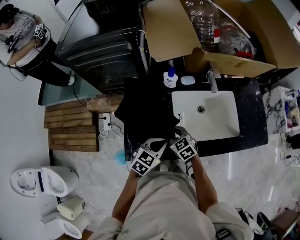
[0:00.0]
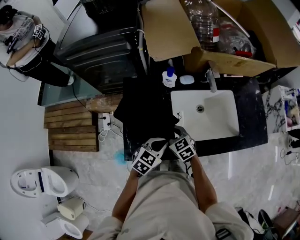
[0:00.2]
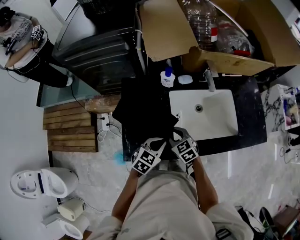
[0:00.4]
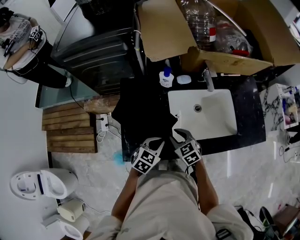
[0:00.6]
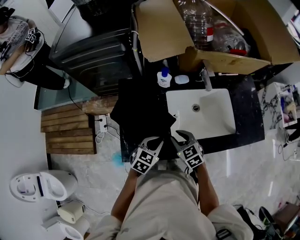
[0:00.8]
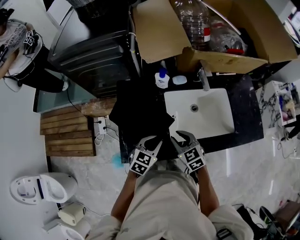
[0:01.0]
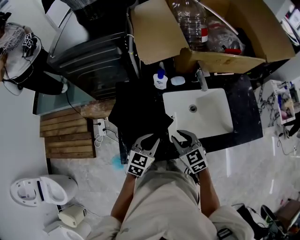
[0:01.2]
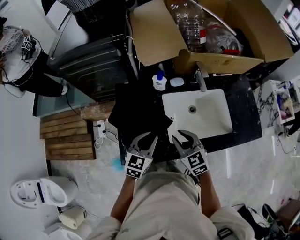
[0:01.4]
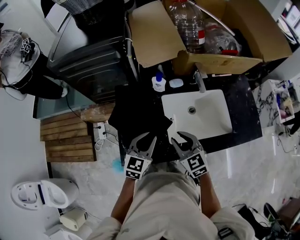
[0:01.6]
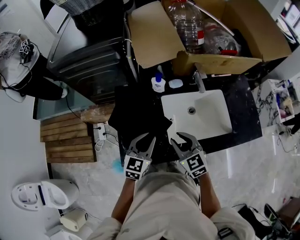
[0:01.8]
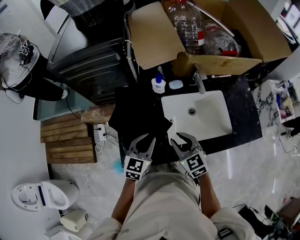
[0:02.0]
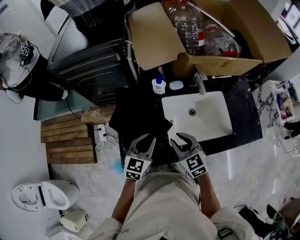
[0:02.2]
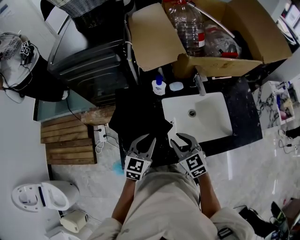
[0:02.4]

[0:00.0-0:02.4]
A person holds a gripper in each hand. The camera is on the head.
0:00.0 to 0:01.2: The right gripper heads upward and to the right, covering approximately 10 cm.
0:01.2 to 0:02.4: The grippers make only small movements.

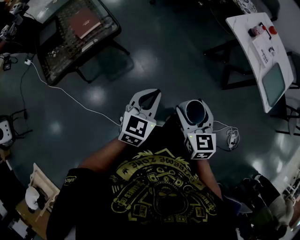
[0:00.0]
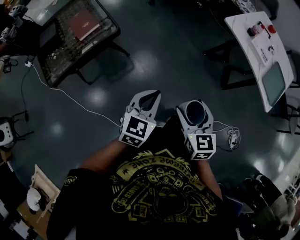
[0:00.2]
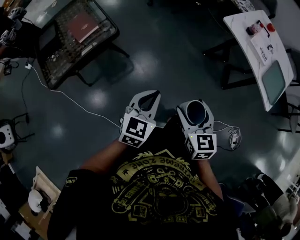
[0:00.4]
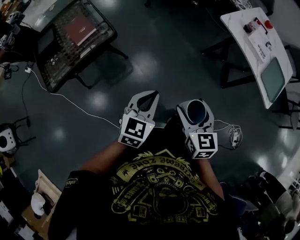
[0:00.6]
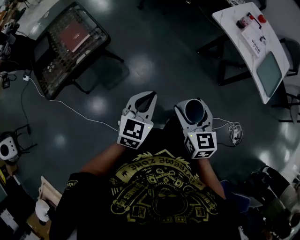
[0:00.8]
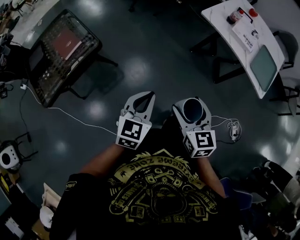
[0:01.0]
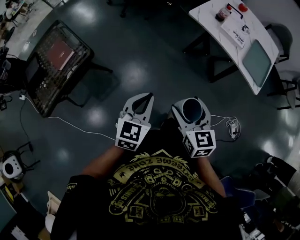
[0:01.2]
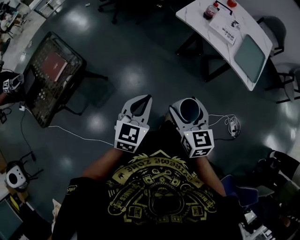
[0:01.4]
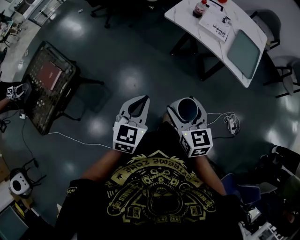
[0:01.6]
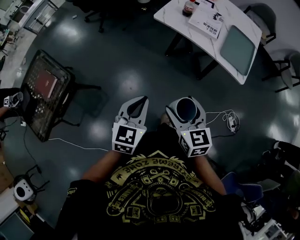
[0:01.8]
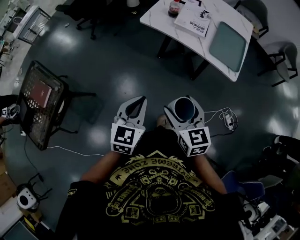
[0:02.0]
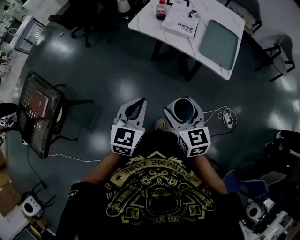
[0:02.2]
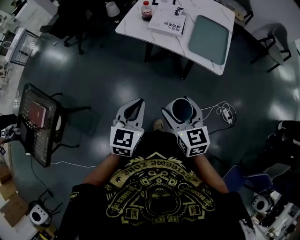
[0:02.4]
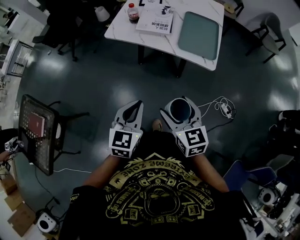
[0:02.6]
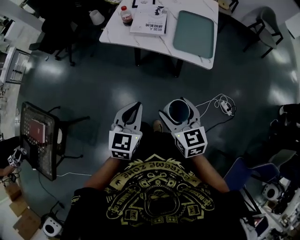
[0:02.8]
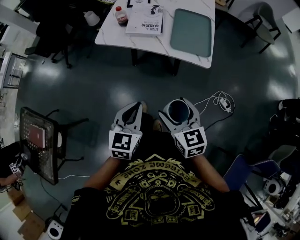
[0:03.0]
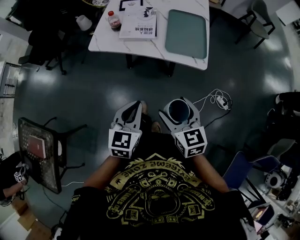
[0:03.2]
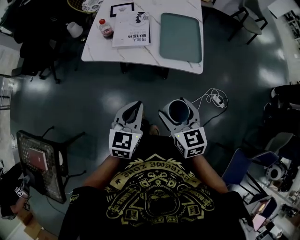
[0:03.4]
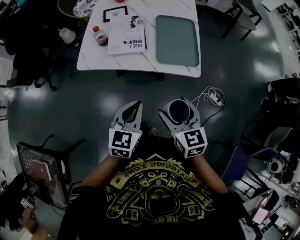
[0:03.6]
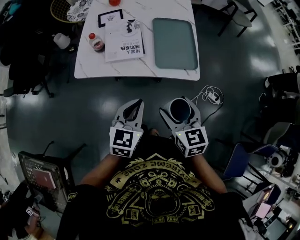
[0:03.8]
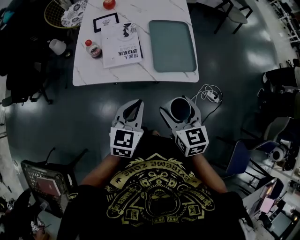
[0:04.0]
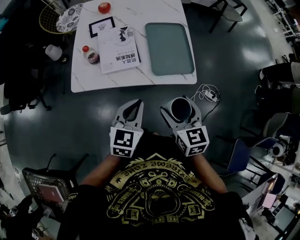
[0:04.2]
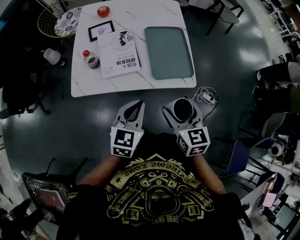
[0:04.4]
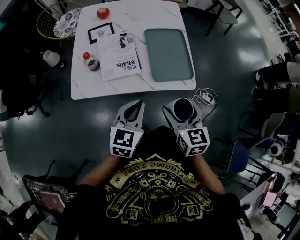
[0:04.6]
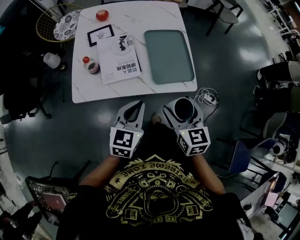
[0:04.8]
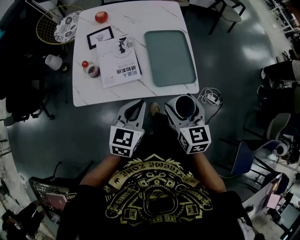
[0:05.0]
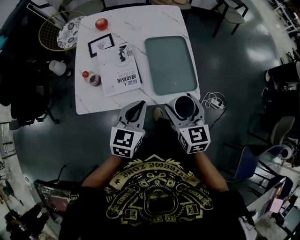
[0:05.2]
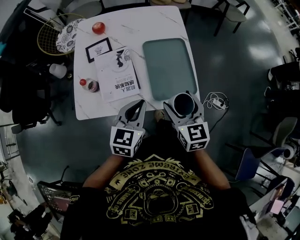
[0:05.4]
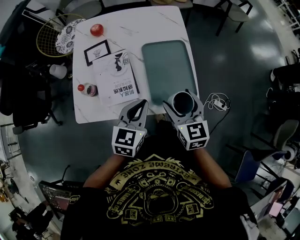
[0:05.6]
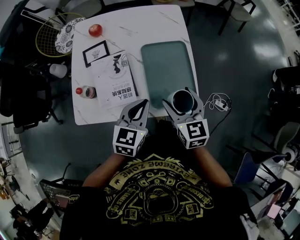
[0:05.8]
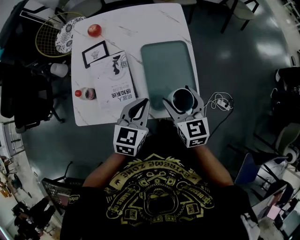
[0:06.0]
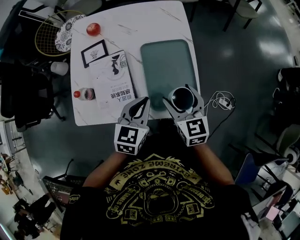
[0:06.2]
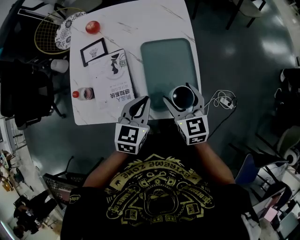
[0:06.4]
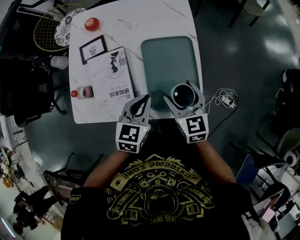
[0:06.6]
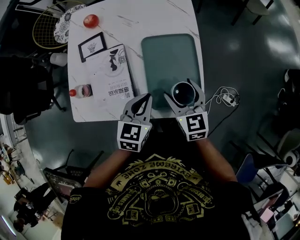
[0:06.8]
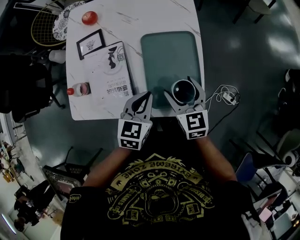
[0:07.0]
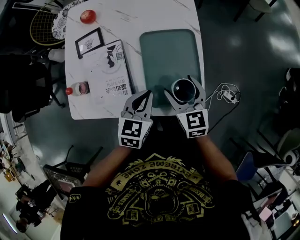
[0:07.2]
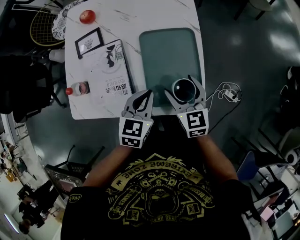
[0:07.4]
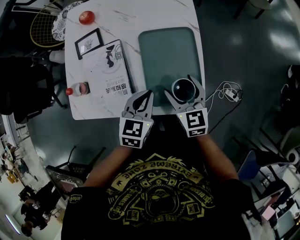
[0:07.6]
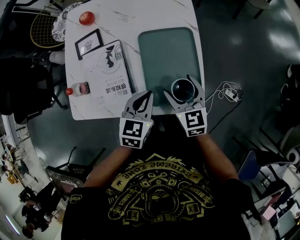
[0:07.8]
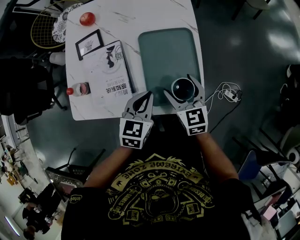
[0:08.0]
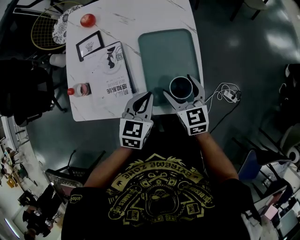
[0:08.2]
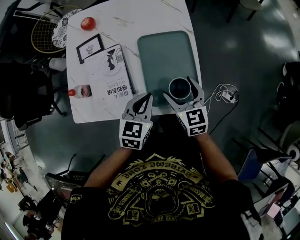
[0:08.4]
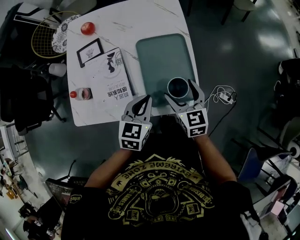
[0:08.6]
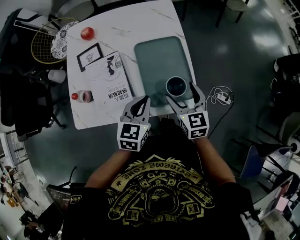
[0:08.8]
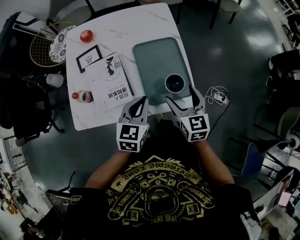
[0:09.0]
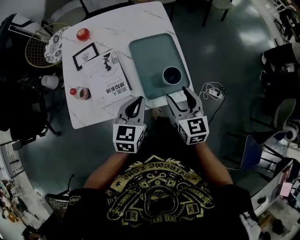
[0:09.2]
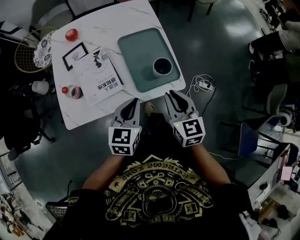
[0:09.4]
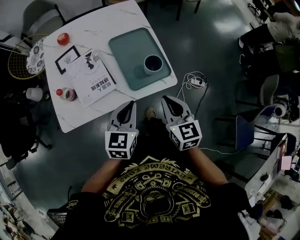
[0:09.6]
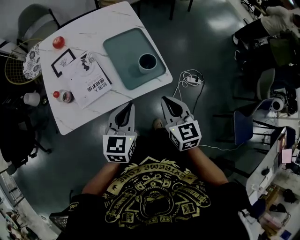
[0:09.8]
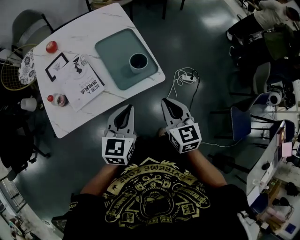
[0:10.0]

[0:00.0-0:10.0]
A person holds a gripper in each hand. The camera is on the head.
0:00.0 to 0:01.4: The right gripper goes about 10 cm to the right; the left gripper travels to the right and forward by some 15 cm.
0:01.4 to 0:02.8: The right gripper travels to the right by roughly 20 cm; the left gripper goes some 25 cm to the right and forward.
0:02.8 to 0:04.2: The left gripper changes place by roughly 25 cm, and swivels approximately 20 degrees; the right gripper moves some 20 cm, and swivels approximately 30 degrees.
0:04.2 to 0:05.8: The grippers both shift forward by about 20 cm.
0:05.8 to 0:07.2: The right gripper goes some 10 cm downward and forward. The left gripper moves downward, roughly 10 cm.
0:07.2 to 0:08.6: The grippers stay close to where they were, moving slightly.
0:08.6 to 0:10.0: Both grippers travel together backward and upward, roughly 20 cm. The right gripper swivels approximately 20 degrees, and closes its fingers, while the left gripper rotates roughly 20 degrees.

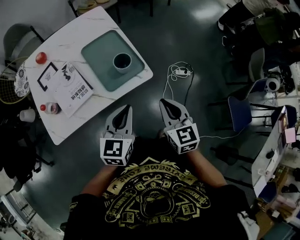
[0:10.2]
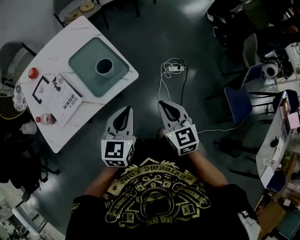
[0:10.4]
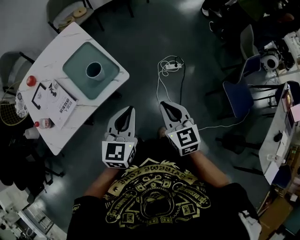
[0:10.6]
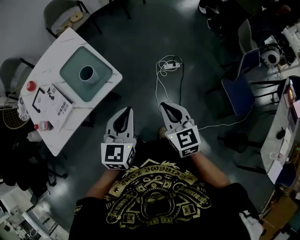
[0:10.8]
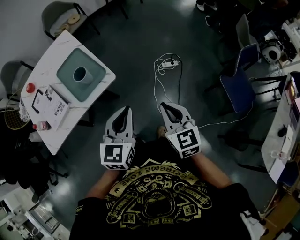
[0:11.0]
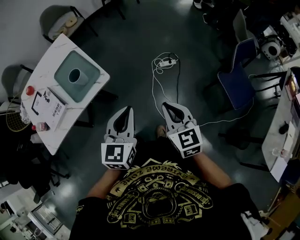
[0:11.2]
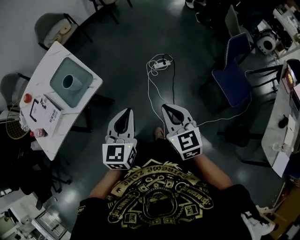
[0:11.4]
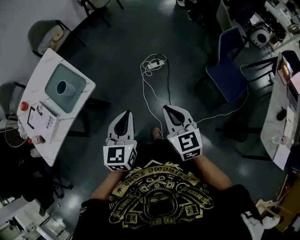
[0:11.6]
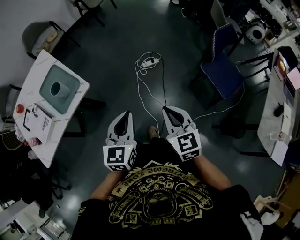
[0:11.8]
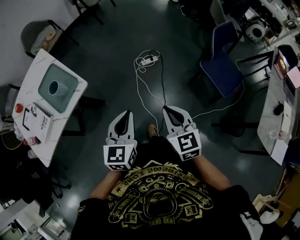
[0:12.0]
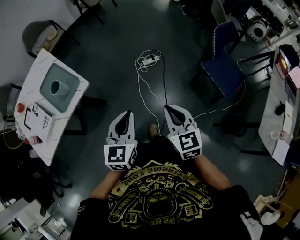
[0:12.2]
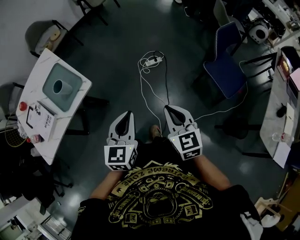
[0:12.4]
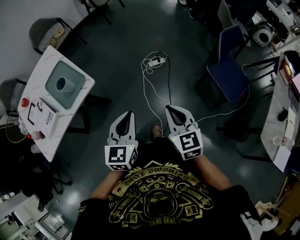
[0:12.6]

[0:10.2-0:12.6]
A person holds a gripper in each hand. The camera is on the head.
0:10.2 to 0:11.4: The two grippers go about 25 cm to the right.
0:11.4 to 0:12.6: The right gripper shifts some 5 cm to the right; the left gripper shifts by about 5 cm.

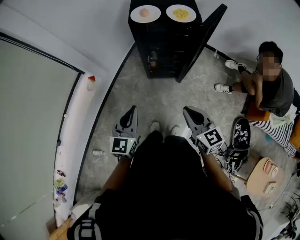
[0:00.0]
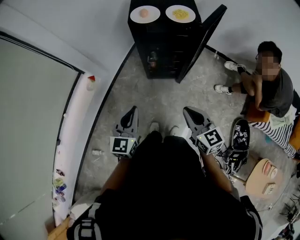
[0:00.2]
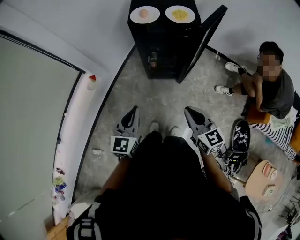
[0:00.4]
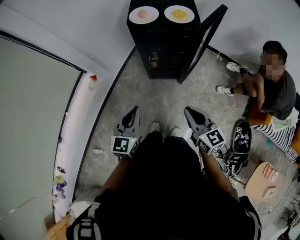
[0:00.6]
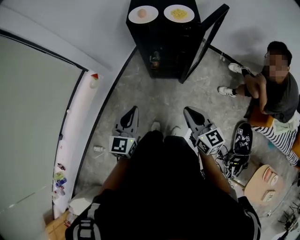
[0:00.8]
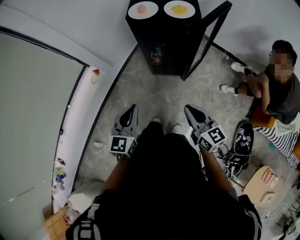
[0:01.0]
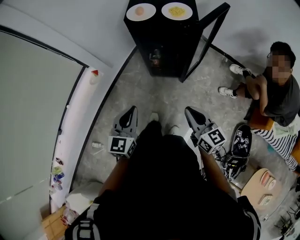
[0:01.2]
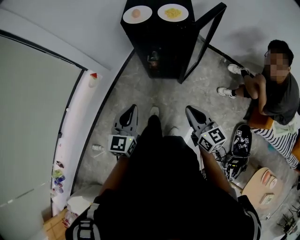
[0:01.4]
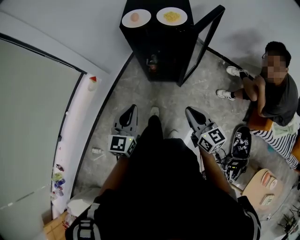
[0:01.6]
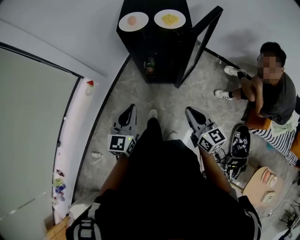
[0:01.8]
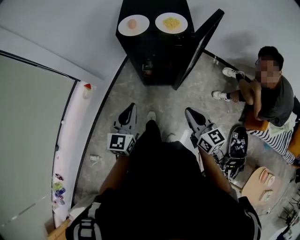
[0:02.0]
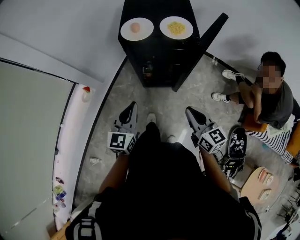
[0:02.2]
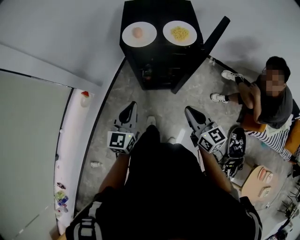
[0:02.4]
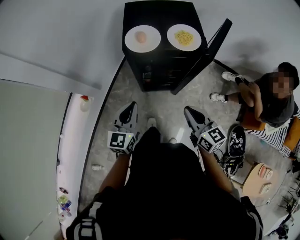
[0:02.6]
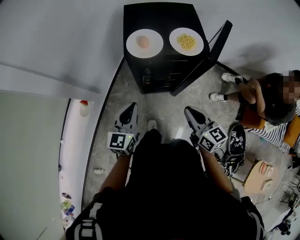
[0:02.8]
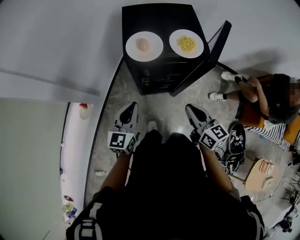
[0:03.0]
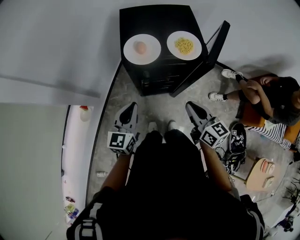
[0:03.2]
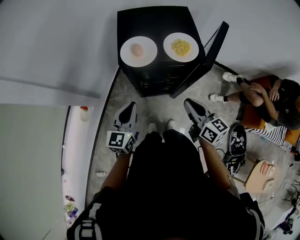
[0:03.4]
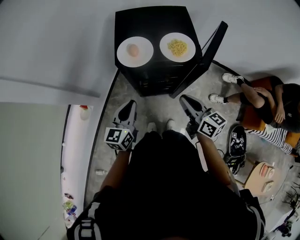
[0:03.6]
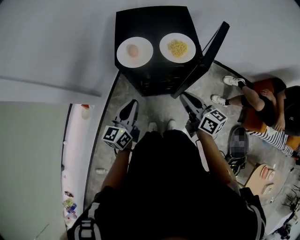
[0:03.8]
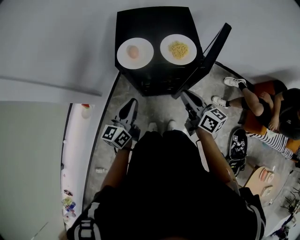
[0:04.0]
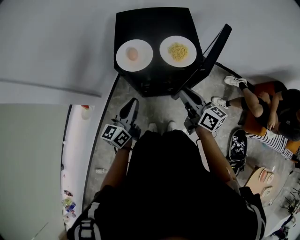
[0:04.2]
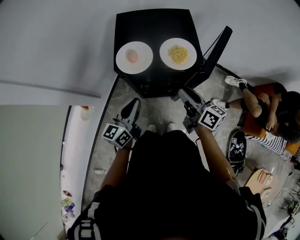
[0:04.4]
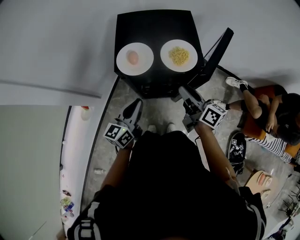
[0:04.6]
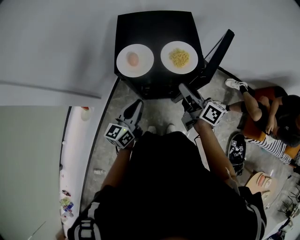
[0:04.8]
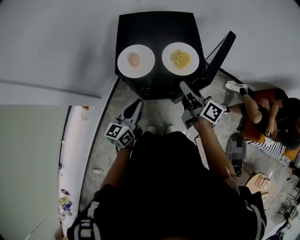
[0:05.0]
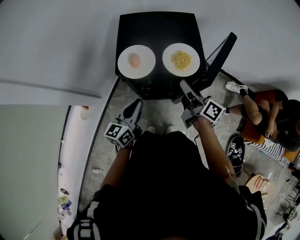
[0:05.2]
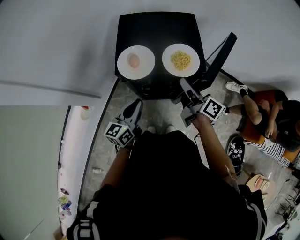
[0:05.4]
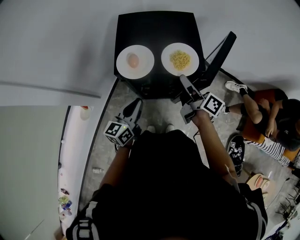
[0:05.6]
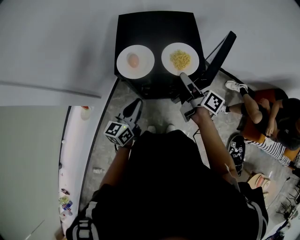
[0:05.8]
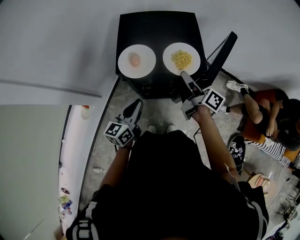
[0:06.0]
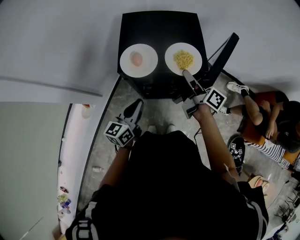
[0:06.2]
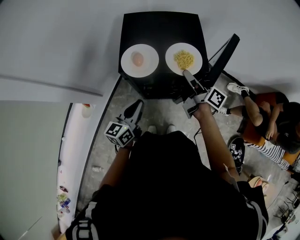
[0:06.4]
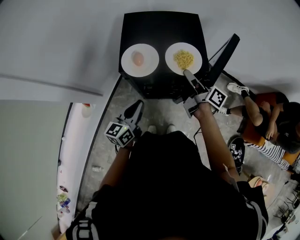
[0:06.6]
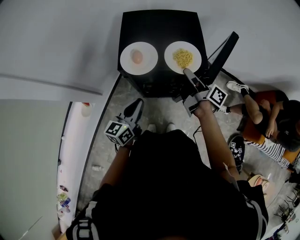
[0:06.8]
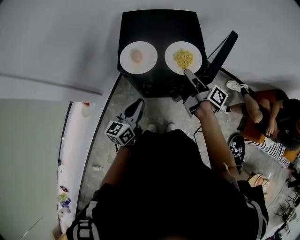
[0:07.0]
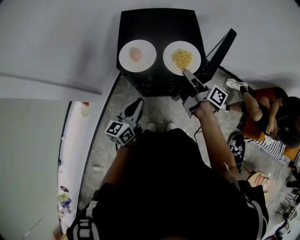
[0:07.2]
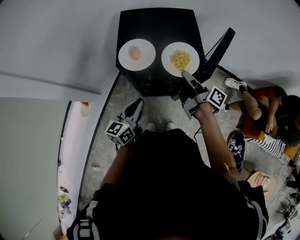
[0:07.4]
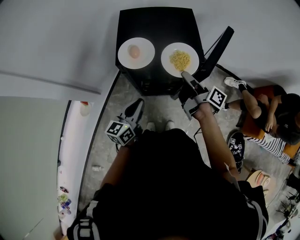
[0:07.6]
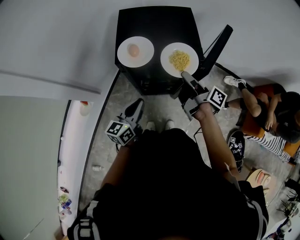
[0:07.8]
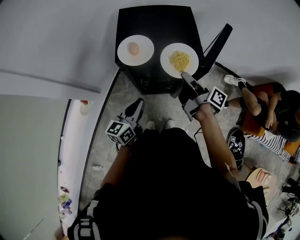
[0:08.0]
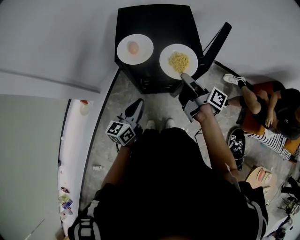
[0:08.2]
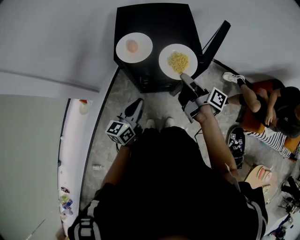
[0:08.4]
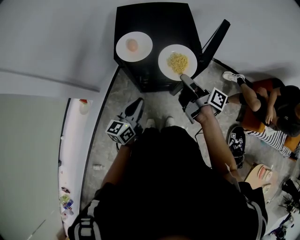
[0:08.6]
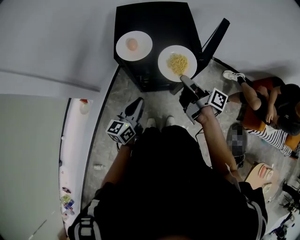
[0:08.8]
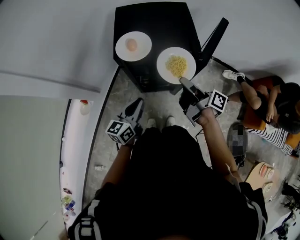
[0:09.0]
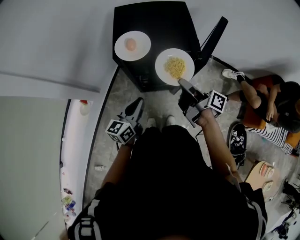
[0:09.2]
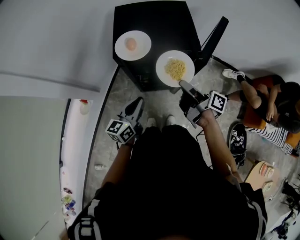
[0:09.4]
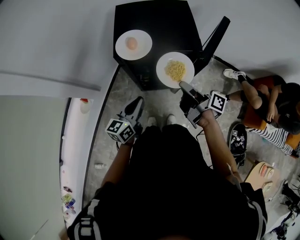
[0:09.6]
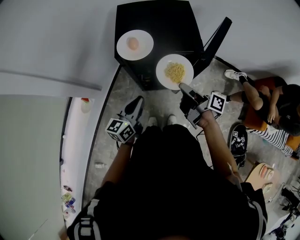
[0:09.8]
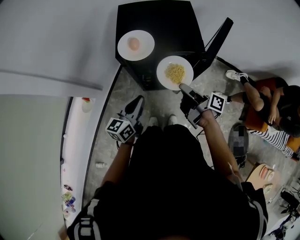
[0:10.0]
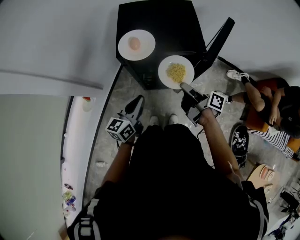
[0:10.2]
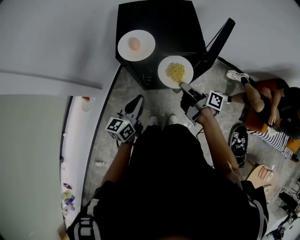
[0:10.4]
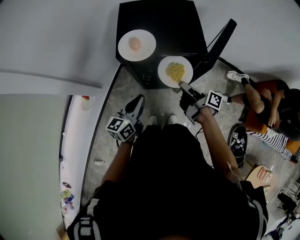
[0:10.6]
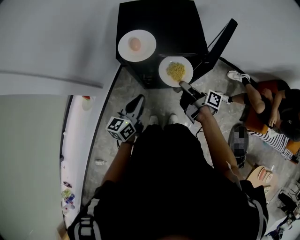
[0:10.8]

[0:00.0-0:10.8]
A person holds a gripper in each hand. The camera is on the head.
0:00.0 to 0:01.6: The left gripper shifts by roughly 10 cm.
0:01.6 to 0:03.0: The left gripper shifts by about 25 cm.
0:03.0 to 0:04.6: The left gripper shifts by some 10 cm.
